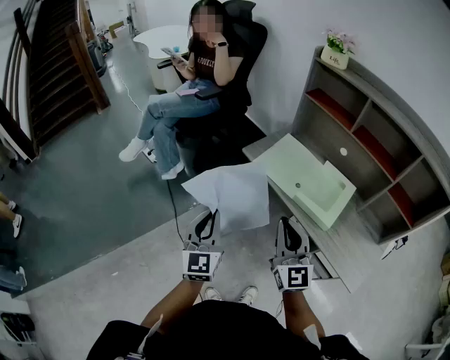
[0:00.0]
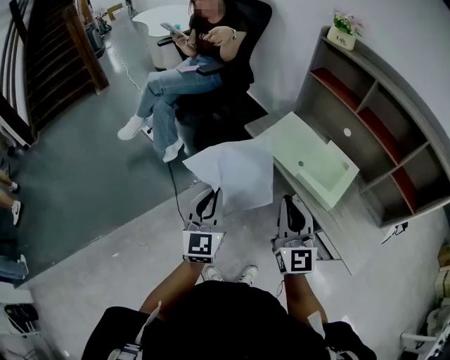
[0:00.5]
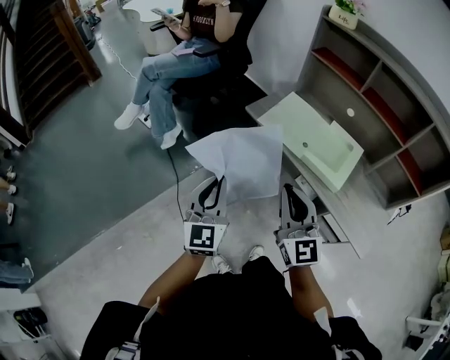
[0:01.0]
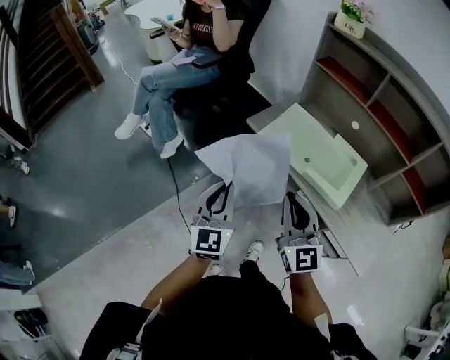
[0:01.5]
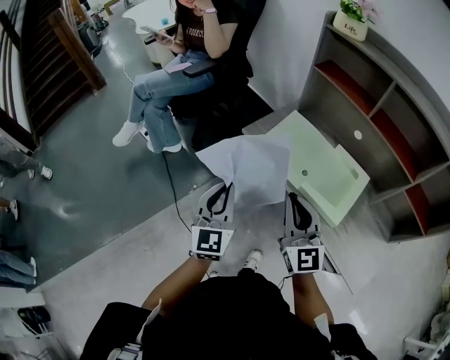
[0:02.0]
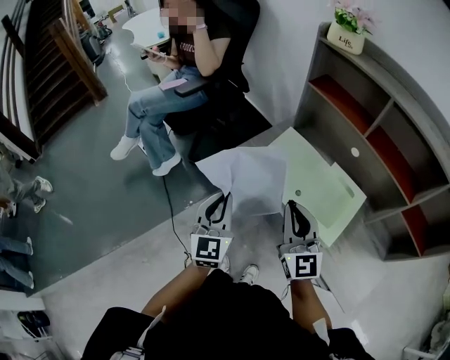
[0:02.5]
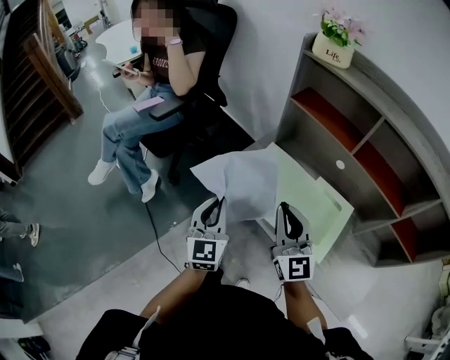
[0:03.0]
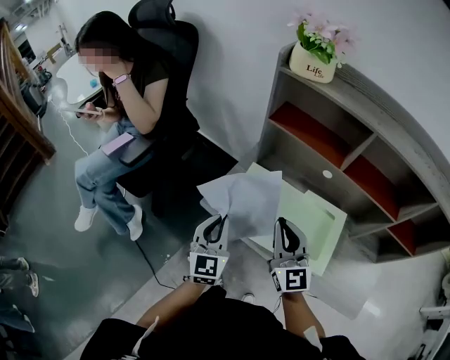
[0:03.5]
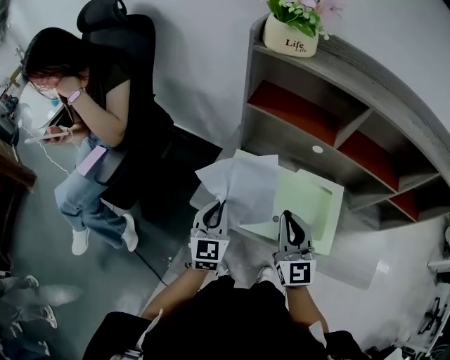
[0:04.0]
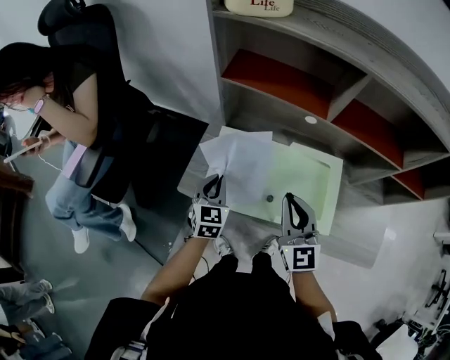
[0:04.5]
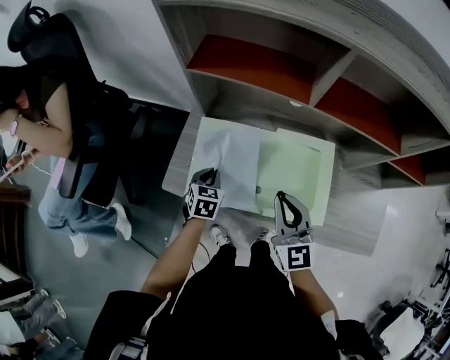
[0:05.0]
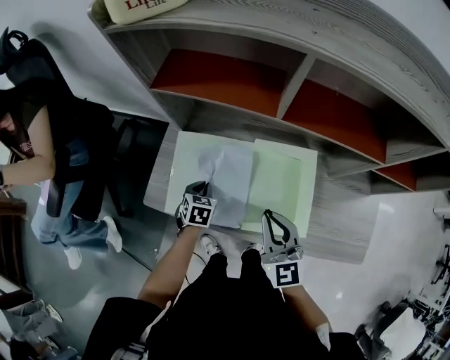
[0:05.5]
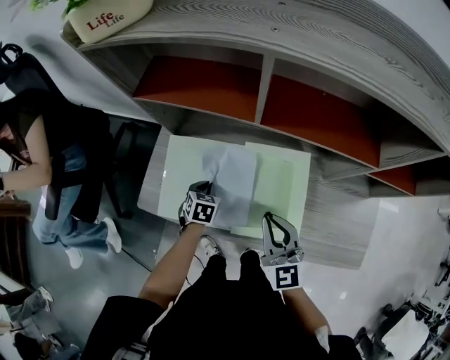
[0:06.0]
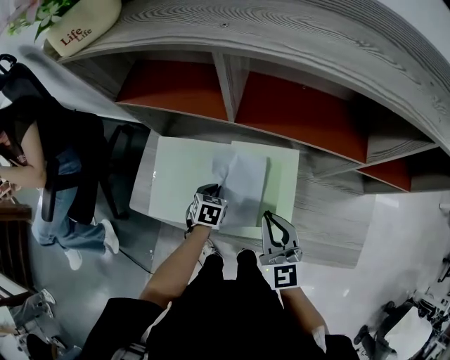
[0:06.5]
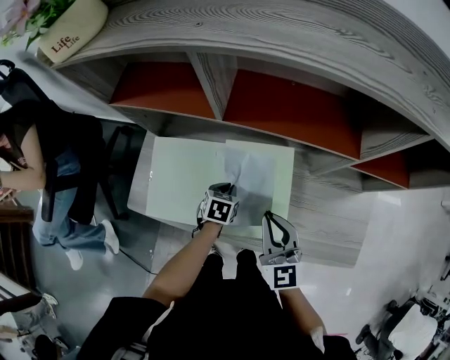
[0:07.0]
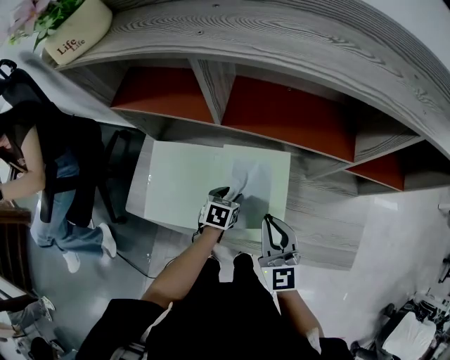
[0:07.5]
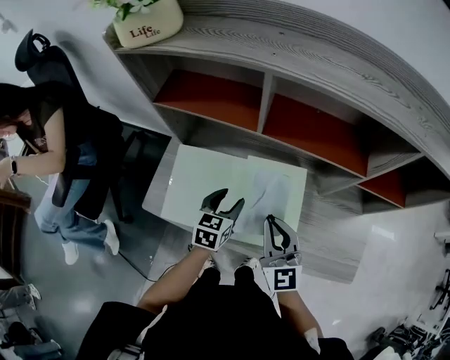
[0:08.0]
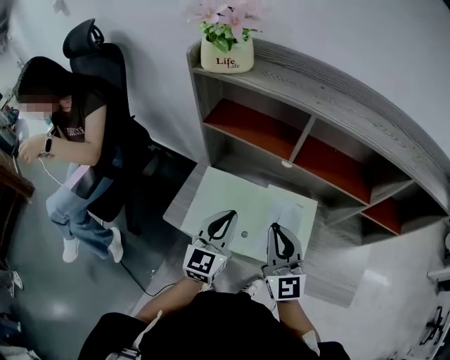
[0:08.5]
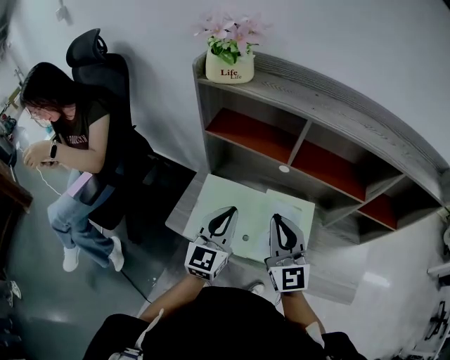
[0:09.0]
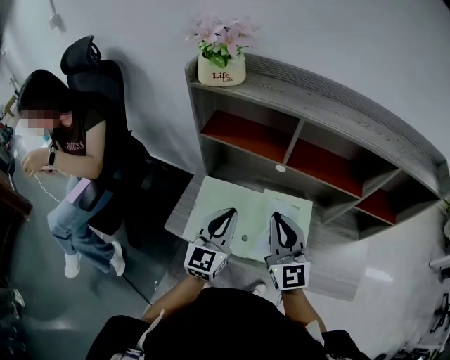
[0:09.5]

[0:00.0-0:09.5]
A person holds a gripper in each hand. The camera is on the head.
0:00.0 to 0:02.0: The right gripper goes roughly 10 cm forward. The left gripper goes about 15 cm forward and to the right.
0:02.0 to 0:04.0: The left gripper shifts by some 30 cm, and changes its angle by some 30 degrees. Meanwhile the right gripper moves roughly 25 cm, and turns by about 30 degrees.
0:04.0 to 0:05.5: The left gripper is displaced downward and to the right by roughly 25 cm, and tilts its fingers roughly 40 degrees downward; the right gripper is displaced to the right and downward by about 15 cm.
0:05.5 to 0:07.5: The left gripper moves to the right, about 20 cm, and opens its fingers, while the right gripper is displaced to the right by about 10 cm.
0:07.5 to 0:09.5: The right gripper shifts roughly 20 cm upward and to the left. Meanwhile the left gripper shifts about 35 cm upward and to the left, angles its fingers upward, by approximately 50 degrees, and closes its fingers.

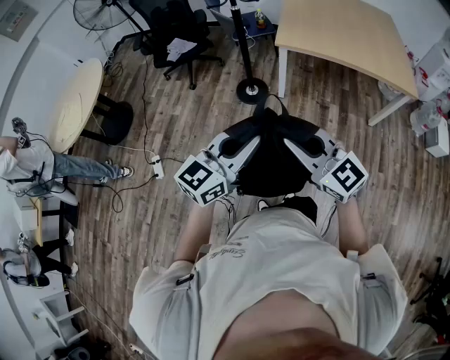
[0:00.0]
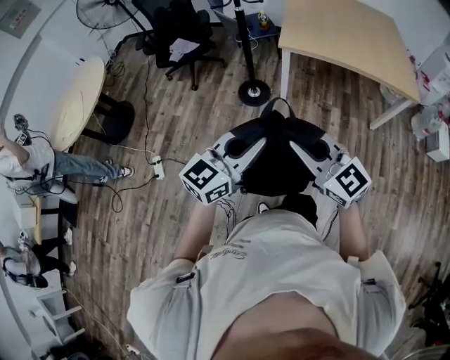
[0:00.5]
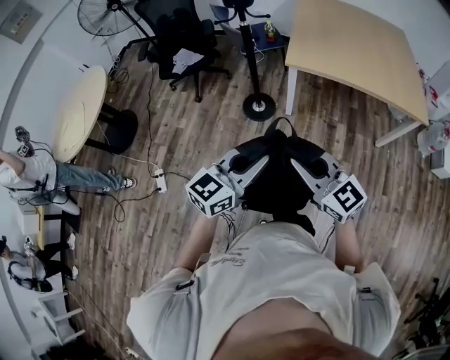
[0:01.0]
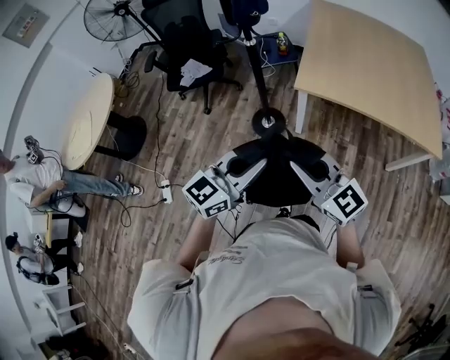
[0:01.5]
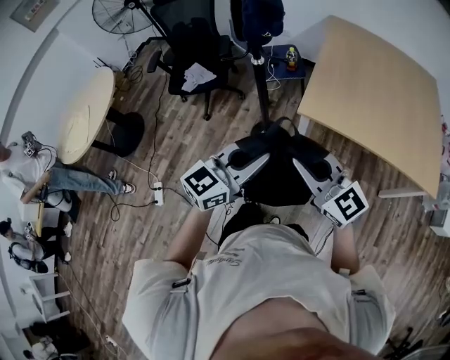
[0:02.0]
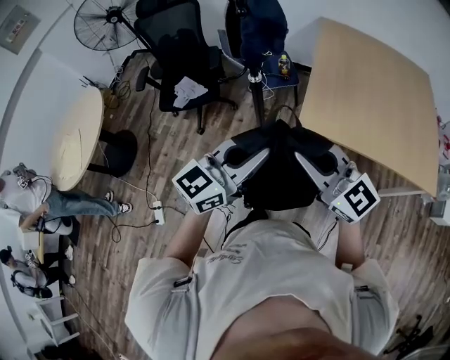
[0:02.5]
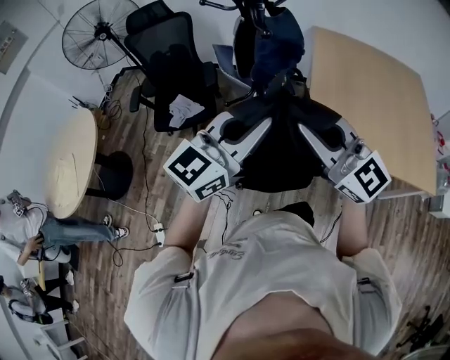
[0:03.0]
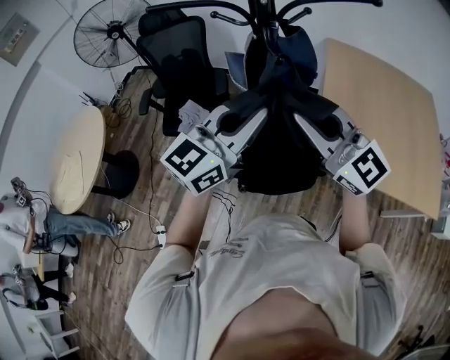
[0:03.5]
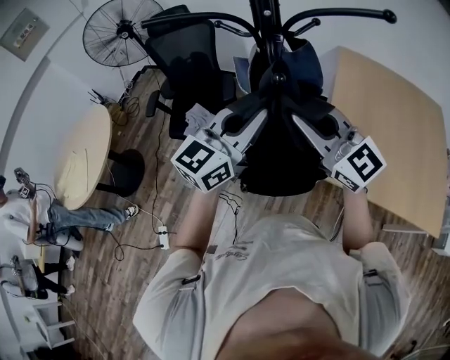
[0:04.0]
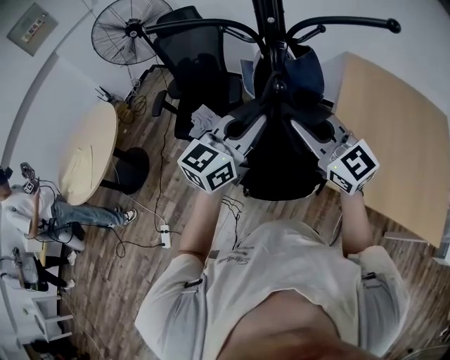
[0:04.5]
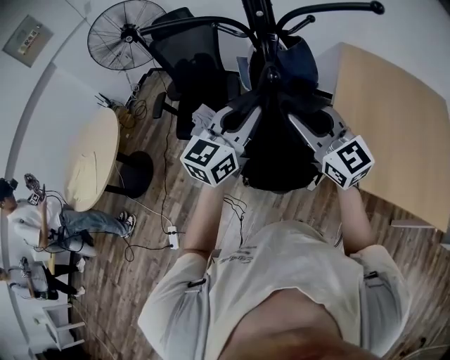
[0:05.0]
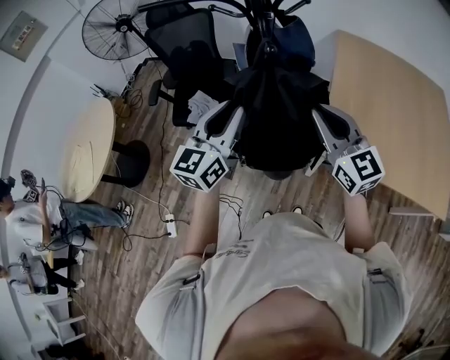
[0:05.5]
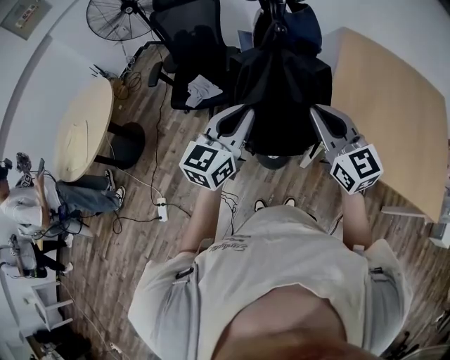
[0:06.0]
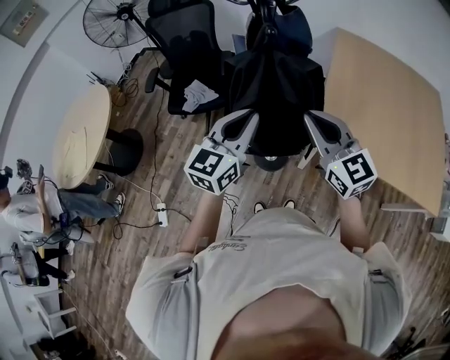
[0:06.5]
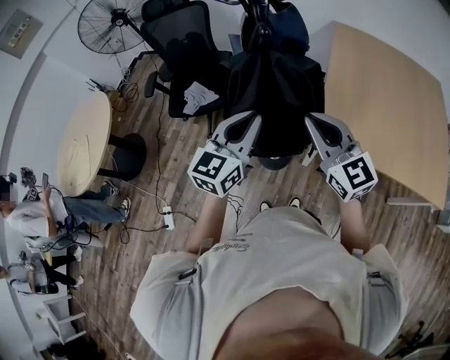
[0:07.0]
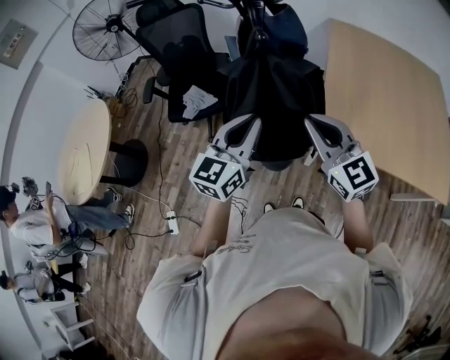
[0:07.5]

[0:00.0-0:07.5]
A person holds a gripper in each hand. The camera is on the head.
0:00.0 to 0:02.0: The grippers both shift forward by some 35 cm.
0:02.0 to 0:04.0: Both grippers move forward and upward, some 35 cm.
0:04.0 to 0:05.5: The left gripper goes roughly 5 cm to the left. Meanwhile the right gripper goes about 10 cm to the right and downward, and swivels approximately 20 degrees.
0:05.5 to 0:07.5: Both grippers move backward, some 5 cm.

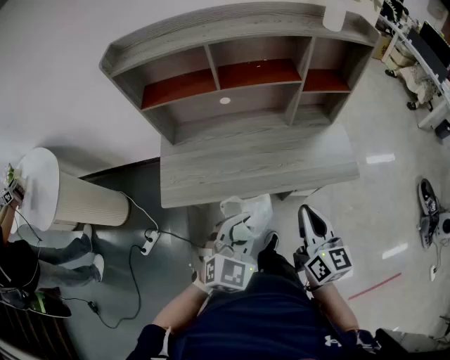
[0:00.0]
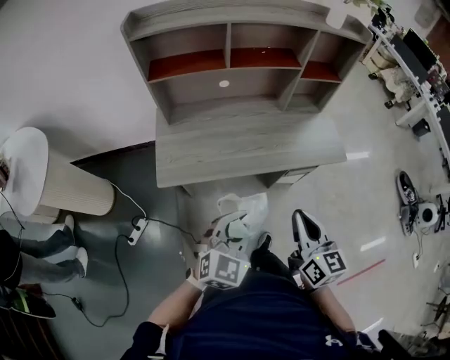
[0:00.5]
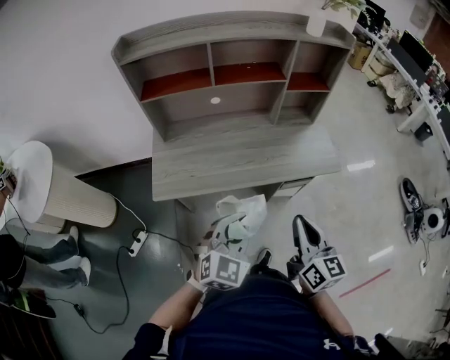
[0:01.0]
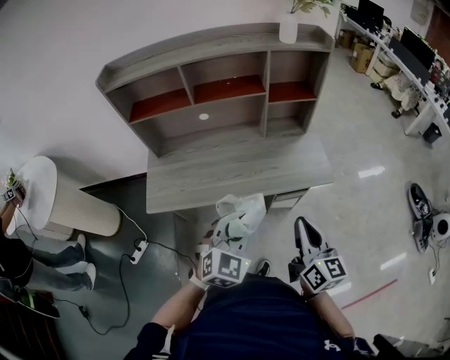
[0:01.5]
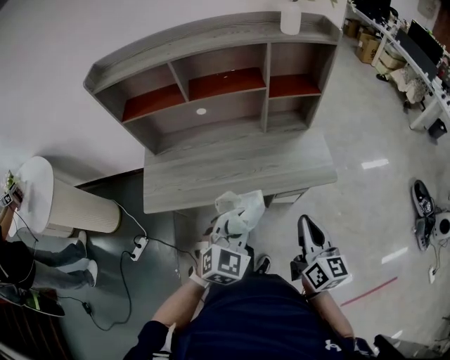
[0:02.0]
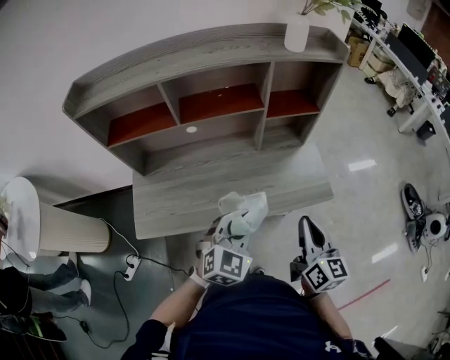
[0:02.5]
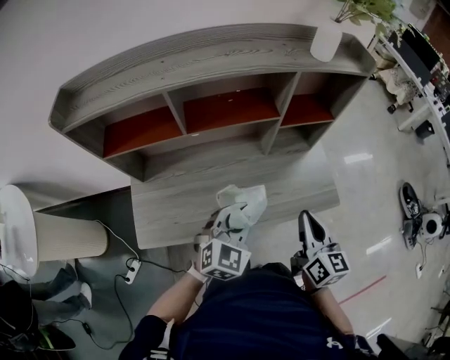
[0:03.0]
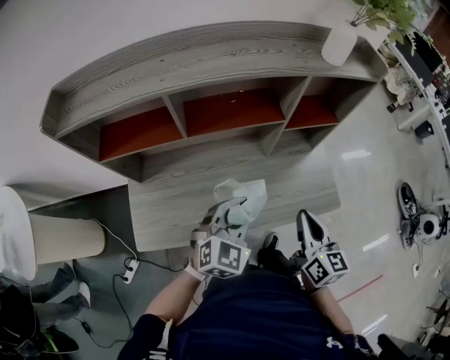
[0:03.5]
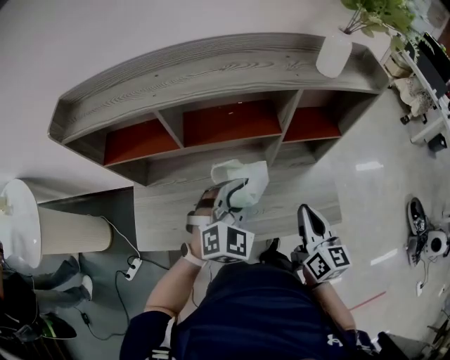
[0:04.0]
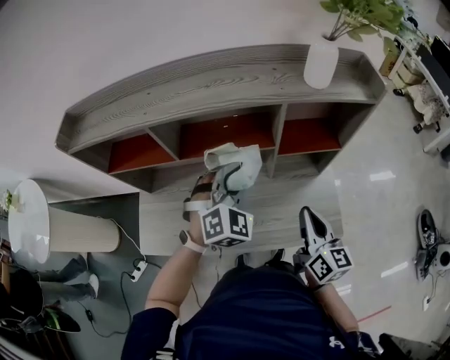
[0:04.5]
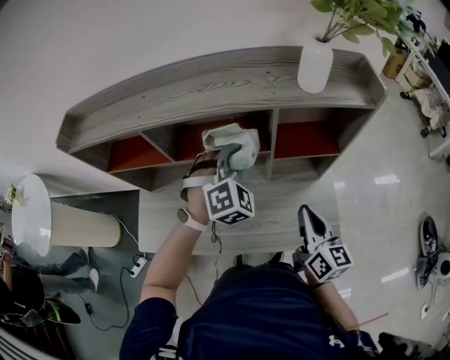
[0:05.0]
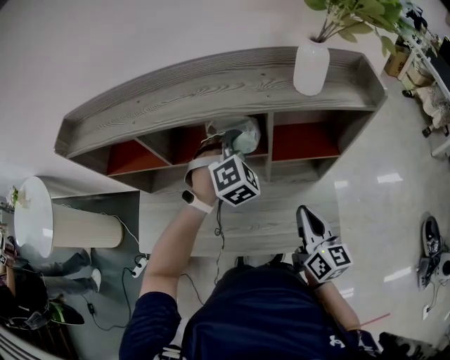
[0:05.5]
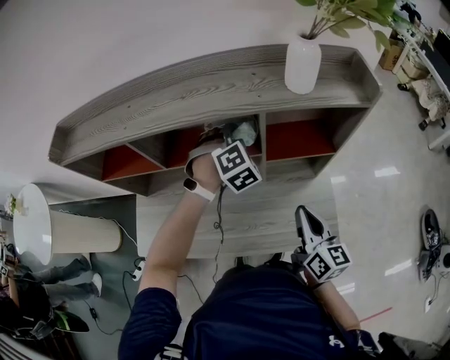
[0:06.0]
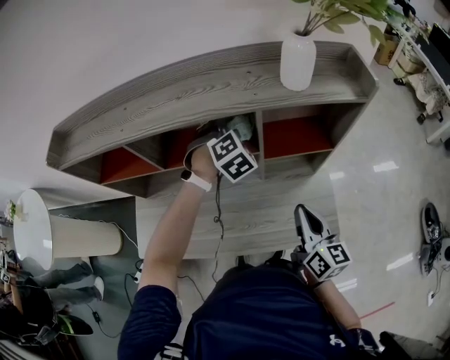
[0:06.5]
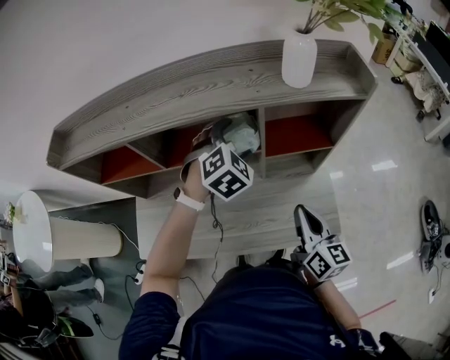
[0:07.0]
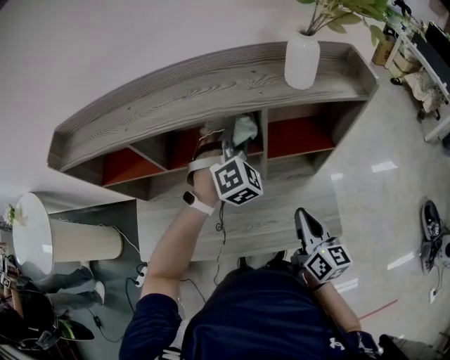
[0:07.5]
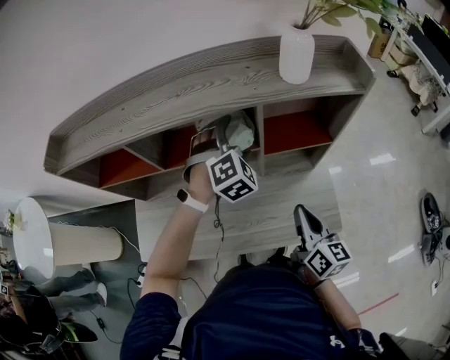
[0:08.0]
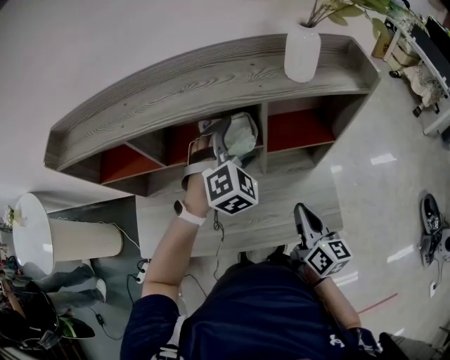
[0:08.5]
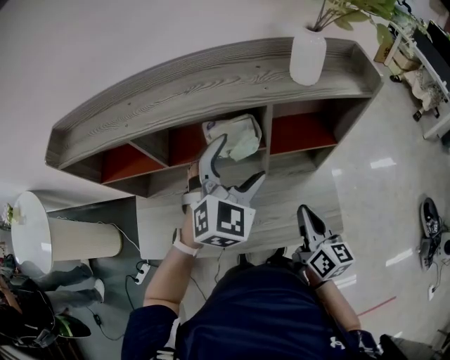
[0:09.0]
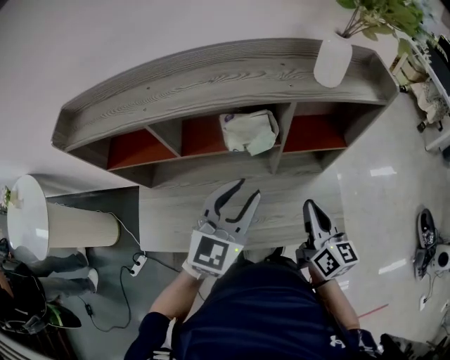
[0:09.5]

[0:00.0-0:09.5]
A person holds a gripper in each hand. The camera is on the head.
0:00.0 to 0:02.0: The two grippers go some 10 cm to the right.
0:02.0 to 0:04.0: The two grippers go about 25 cm forward.
0:04.0 to 0:05.5: The right gripper is displaced to the right and forward by roughly 10 cm, while the left gripper moves forward, some 20 cm, and rotates some 30 degrees.
0:05.5 to 0:07.5: The left gripper opens and closes again.
0:07.5 to 0:09.5: The left gripper shifts about 20 cm backward, twists roughly 50 degrees counterclockwise, seen from behind, and opens, then closes again.
